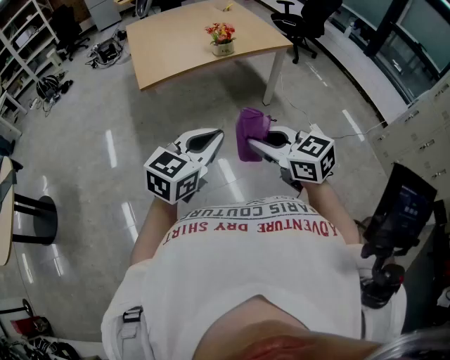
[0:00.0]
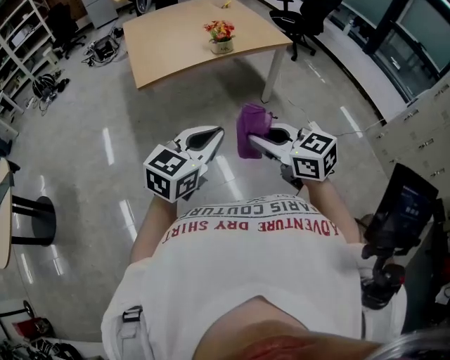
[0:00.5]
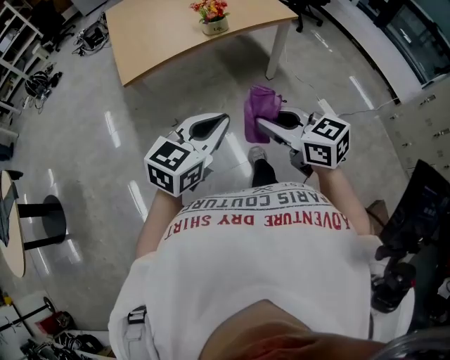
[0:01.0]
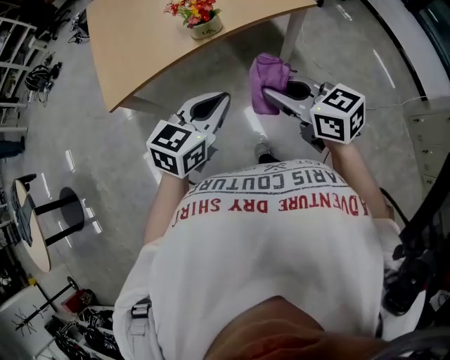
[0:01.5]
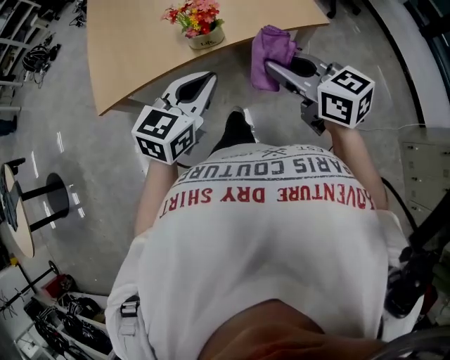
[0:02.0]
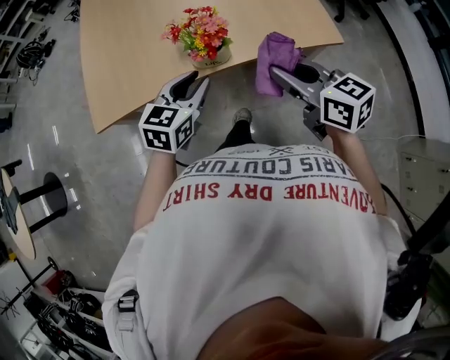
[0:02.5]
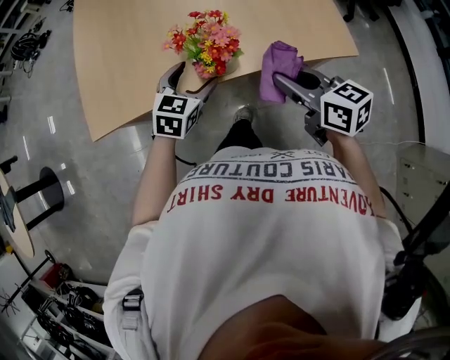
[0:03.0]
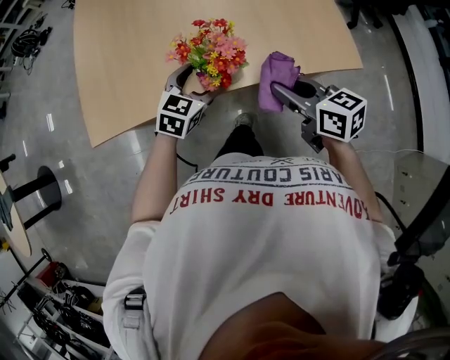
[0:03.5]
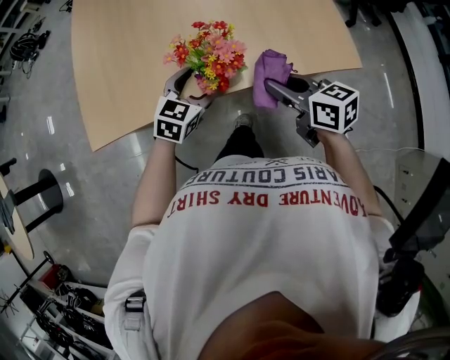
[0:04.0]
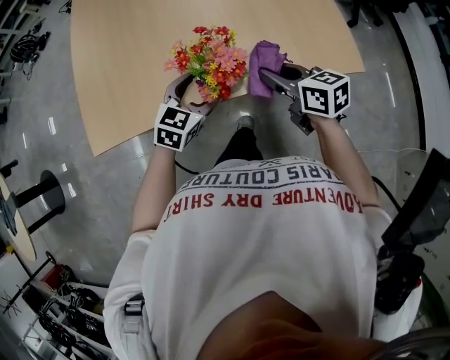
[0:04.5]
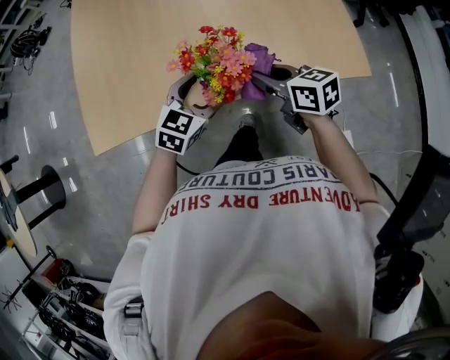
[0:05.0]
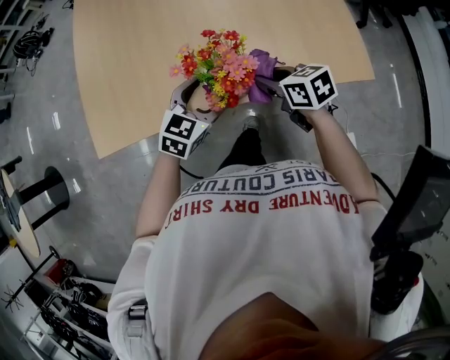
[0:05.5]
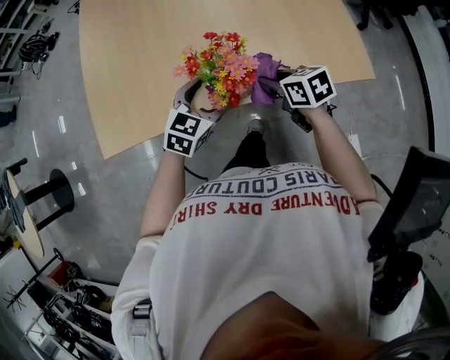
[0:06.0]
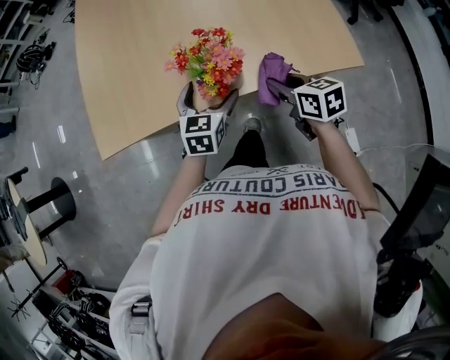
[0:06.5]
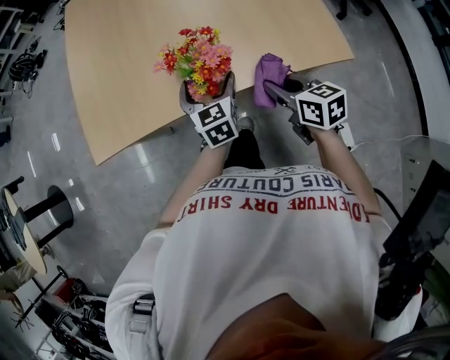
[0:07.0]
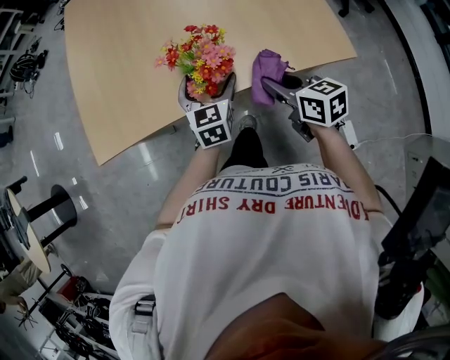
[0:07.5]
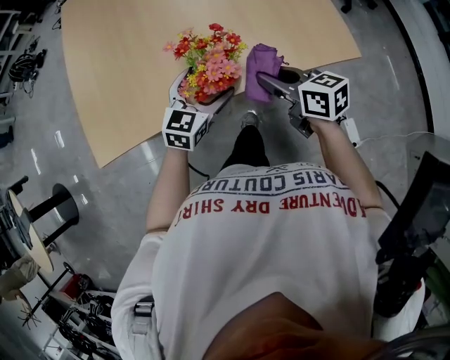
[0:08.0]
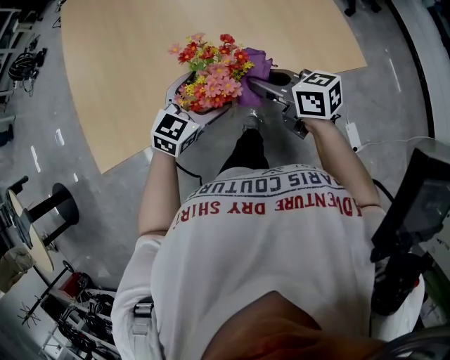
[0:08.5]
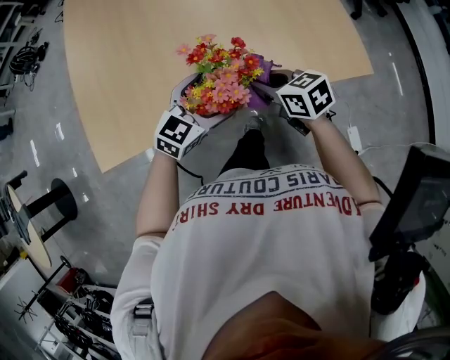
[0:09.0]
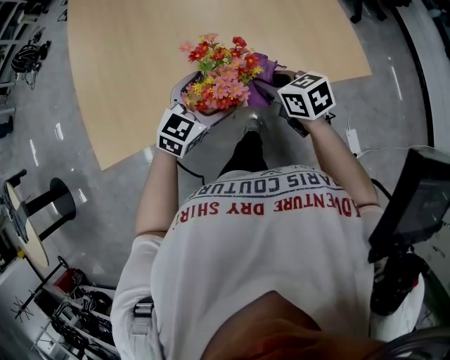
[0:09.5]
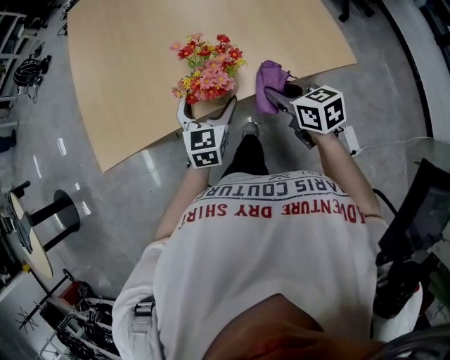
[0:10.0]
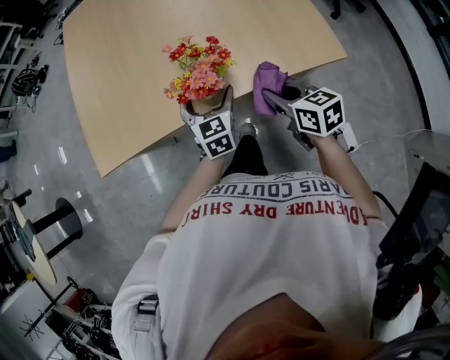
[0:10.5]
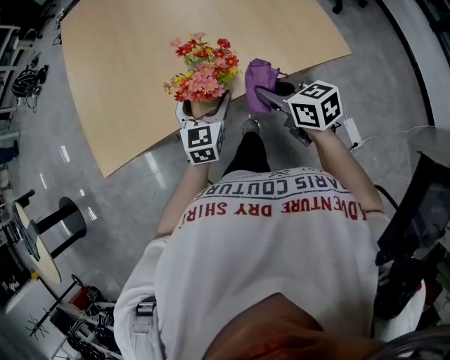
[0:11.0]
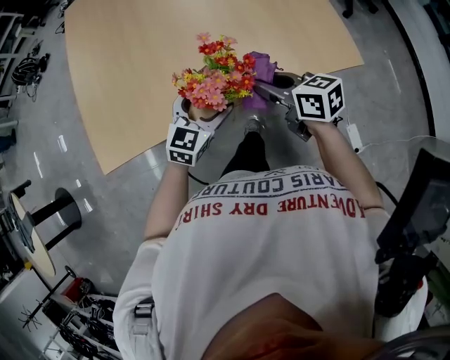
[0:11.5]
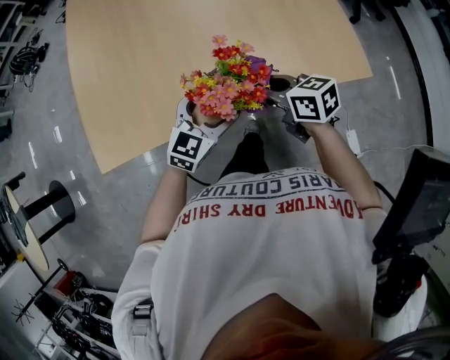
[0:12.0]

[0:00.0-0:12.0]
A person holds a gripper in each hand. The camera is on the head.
0:00.0 to 0:02.0: The two grippers travel together, forward, some 60 cm.
0:02.0 to 0:04.0: Both grippers move forward and downward, some 30 cm. The left gripper opens its fingers.
0:04.0 to 0:06.0: The right gripper travels downward and forward by about 10 cm.
0:06.0 to 0:08.0: The right gripper goes roughly 5 cm upward, and swivels some 20 degrees.
0:08.0 to 0:10.0: The left gripper rotates about 20 degrees.
0:10.0 to 0:12.0: The right gripper travels forward and to the left by approximately 10 cm; the left gripper changes its angle by roughly 30 degrees.

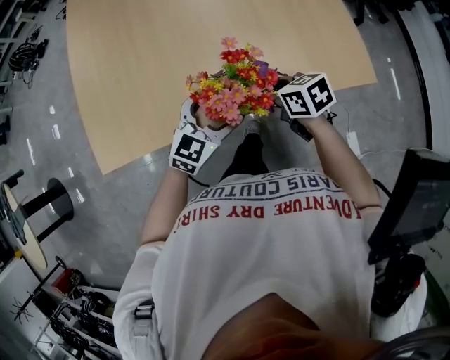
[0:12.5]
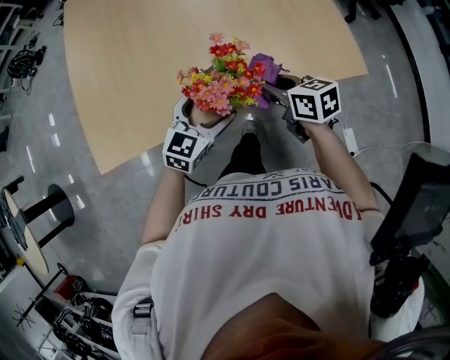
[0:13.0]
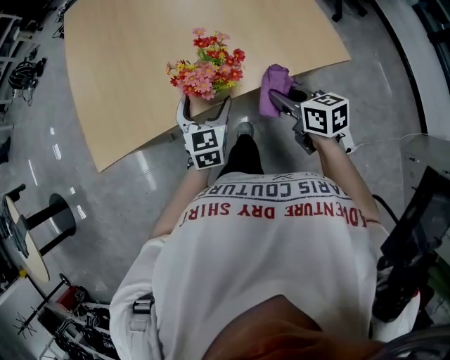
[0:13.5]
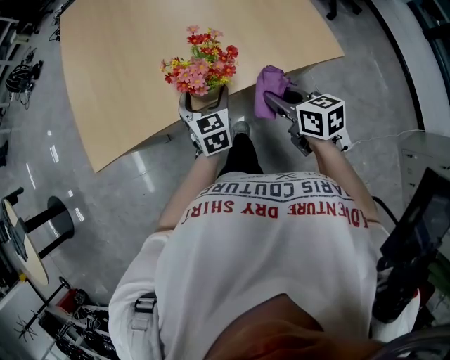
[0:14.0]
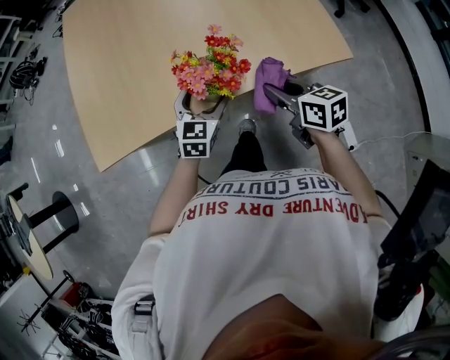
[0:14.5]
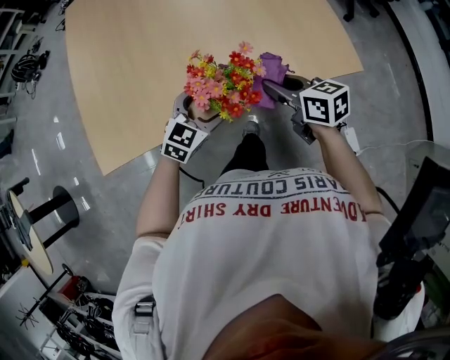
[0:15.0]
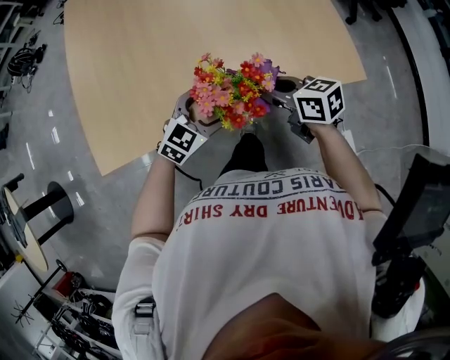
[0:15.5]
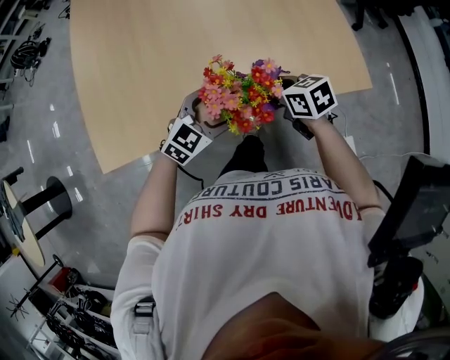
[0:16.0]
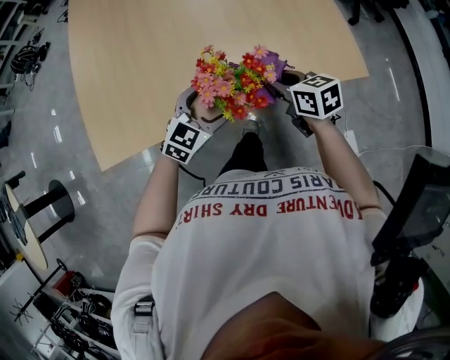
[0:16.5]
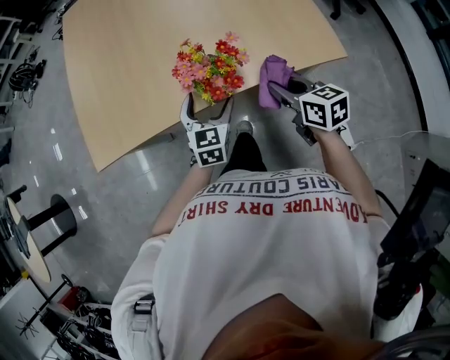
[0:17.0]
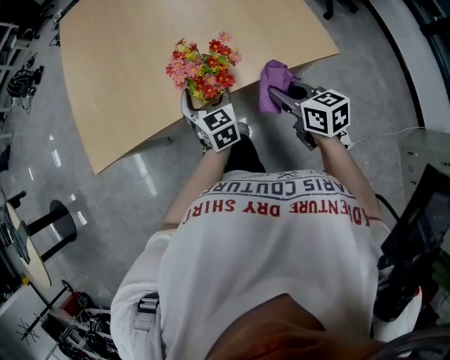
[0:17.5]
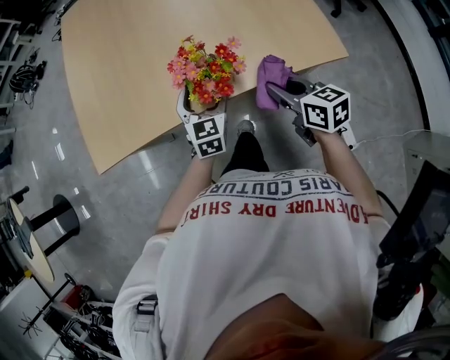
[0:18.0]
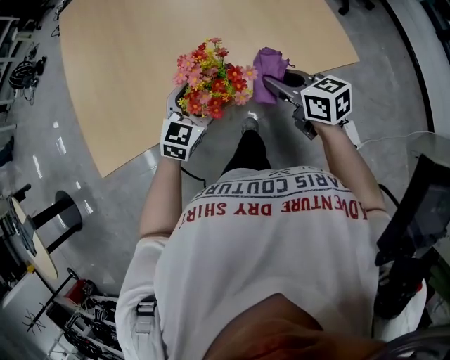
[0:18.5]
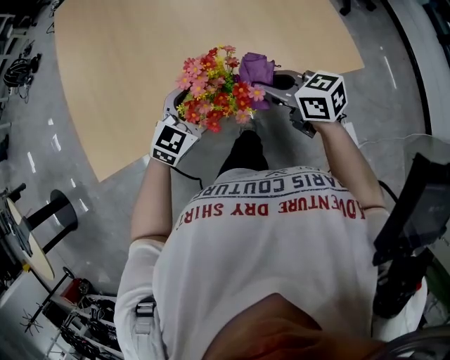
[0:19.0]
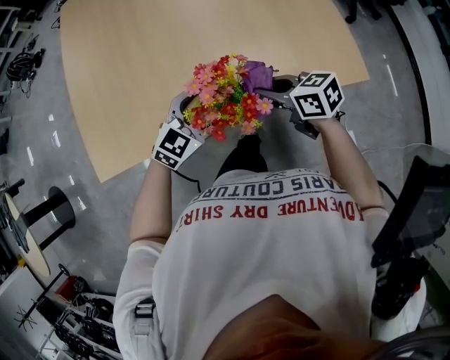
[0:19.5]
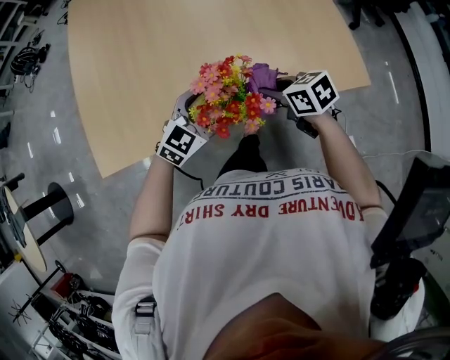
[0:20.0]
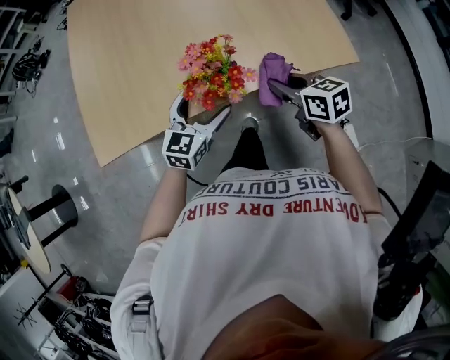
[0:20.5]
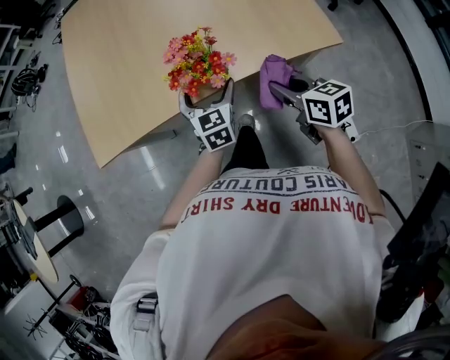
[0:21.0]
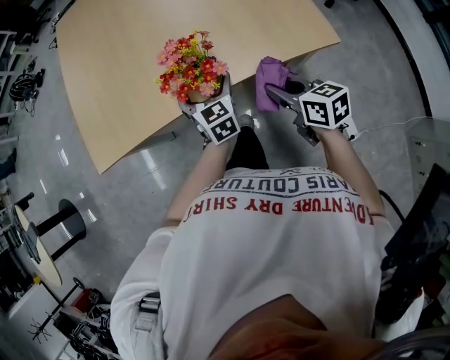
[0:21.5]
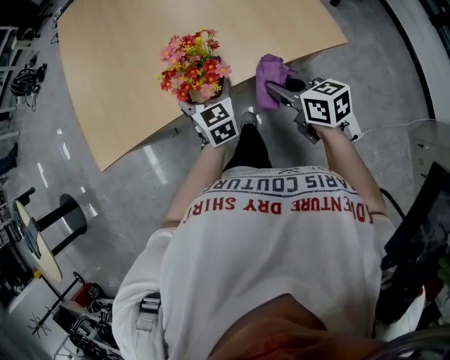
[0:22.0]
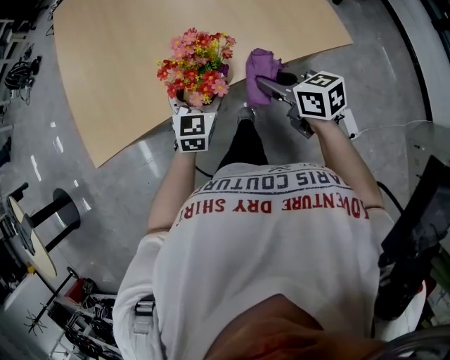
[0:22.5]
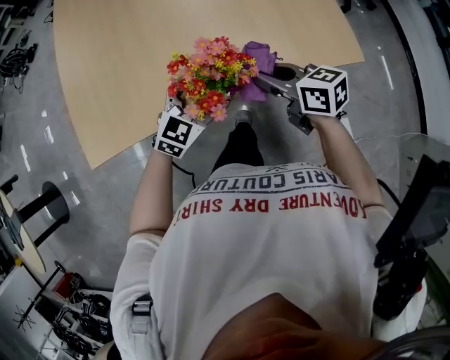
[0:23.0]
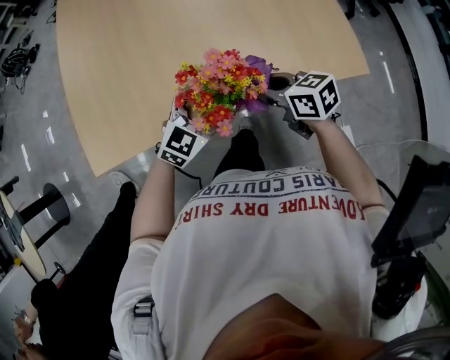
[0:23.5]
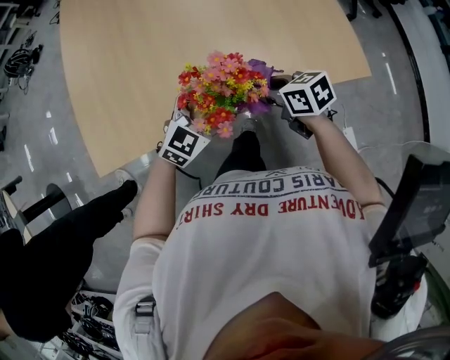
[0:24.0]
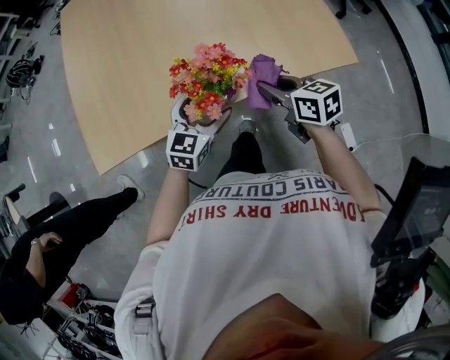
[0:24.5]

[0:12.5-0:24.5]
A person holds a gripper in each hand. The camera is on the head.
0:12.5 to 0:14.5: The right gripper heads backward, to the right and upward, covering roughly 10 cm, and swivels about 20 degrees.
0:14.5 to 0:16.5: The left gripper swivels about 20 degrees. The right gripper is displaced forward by some 10 cm.
0:16.5 to 0:18.5: The right gripper moves roughly 10 cm backward and comes back.
0:18.5 to 0:20.5: The left gripper shifts by about 5 cm.

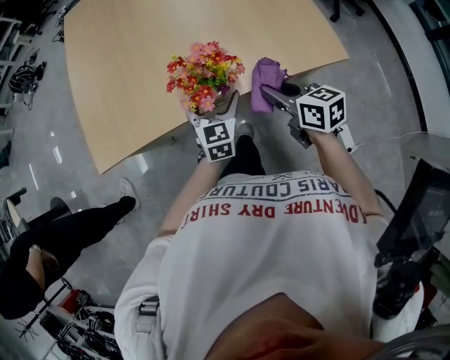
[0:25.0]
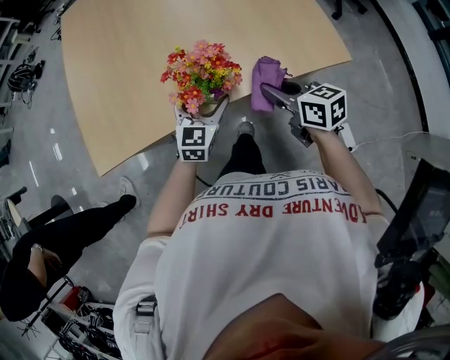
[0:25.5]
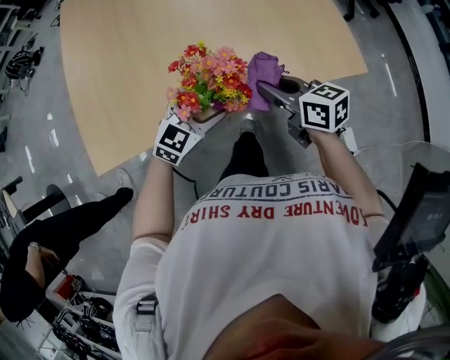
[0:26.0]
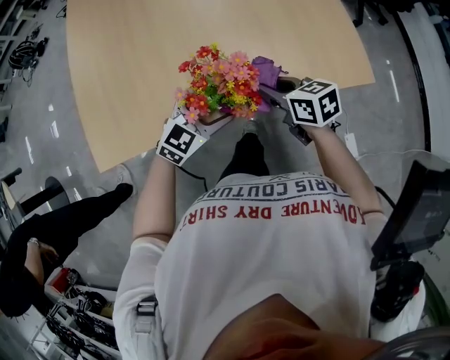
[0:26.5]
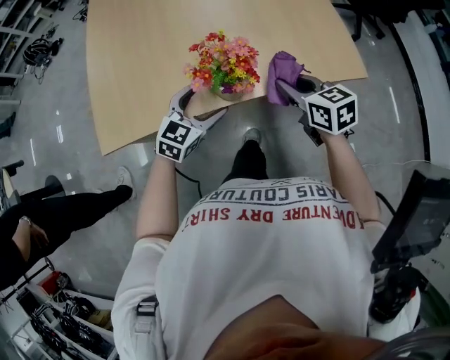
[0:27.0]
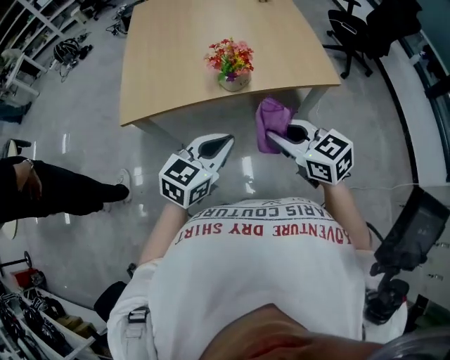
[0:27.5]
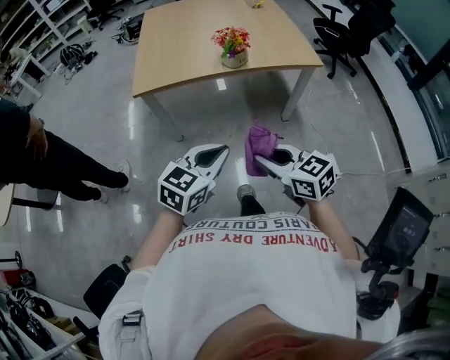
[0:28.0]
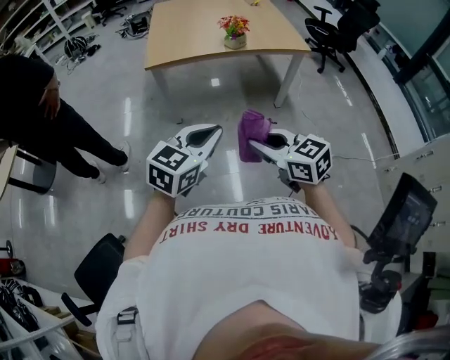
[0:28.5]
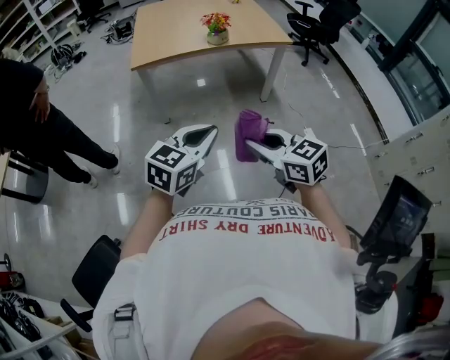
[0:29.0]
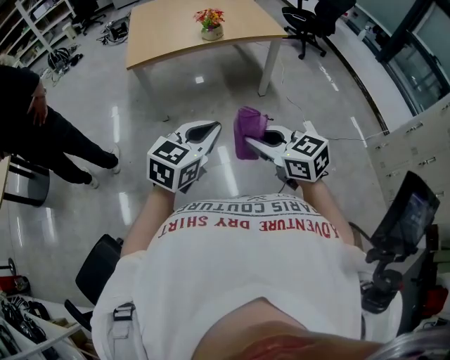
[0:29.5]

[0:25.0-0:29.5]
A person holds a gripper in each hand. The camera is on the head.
0:25.0 to 0:27.0: The right gripper goes forward and returns, some 10 cm each way, while the left gripper heads to the left, covering roughly 5 cm, and swivels about 30 degrees.
0:27.0 to 0:29.5: The pair of grippers is taken backward, roughly 90 cm. The left gripper closes.
